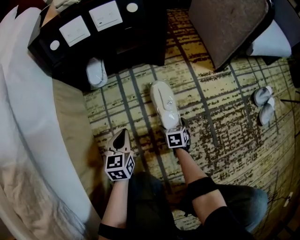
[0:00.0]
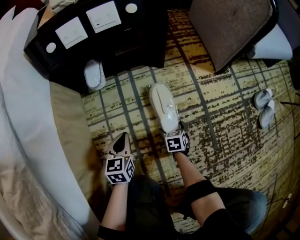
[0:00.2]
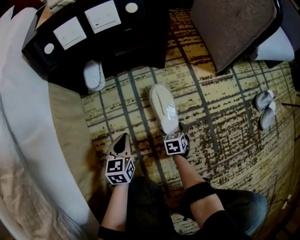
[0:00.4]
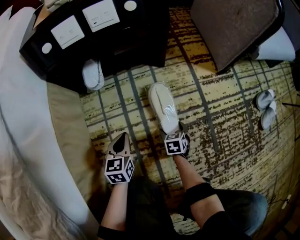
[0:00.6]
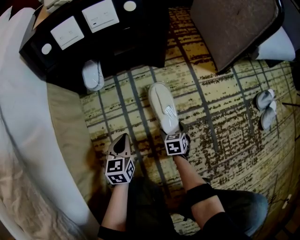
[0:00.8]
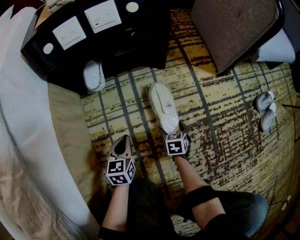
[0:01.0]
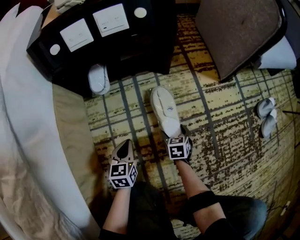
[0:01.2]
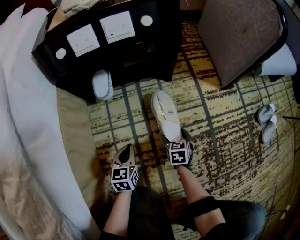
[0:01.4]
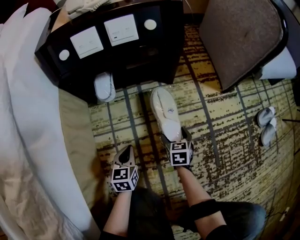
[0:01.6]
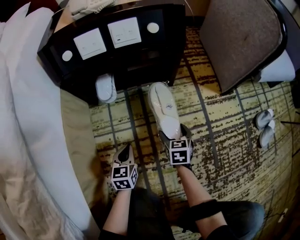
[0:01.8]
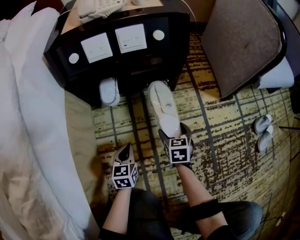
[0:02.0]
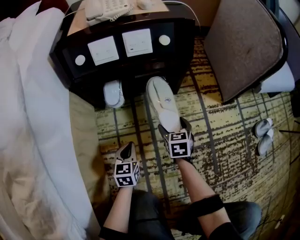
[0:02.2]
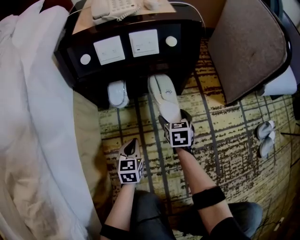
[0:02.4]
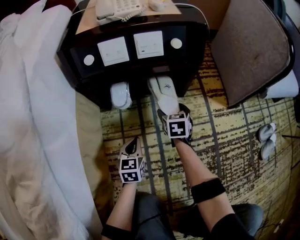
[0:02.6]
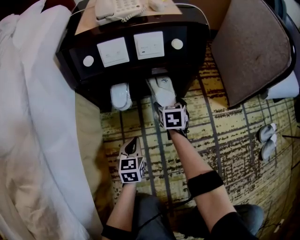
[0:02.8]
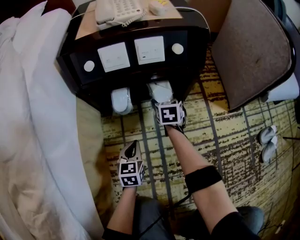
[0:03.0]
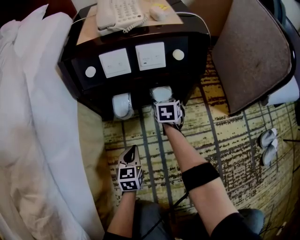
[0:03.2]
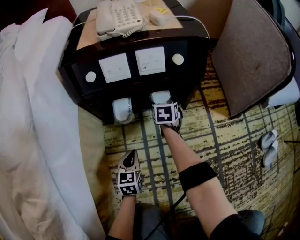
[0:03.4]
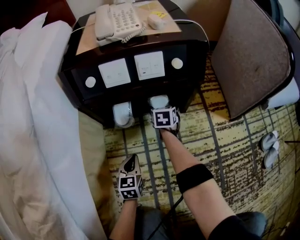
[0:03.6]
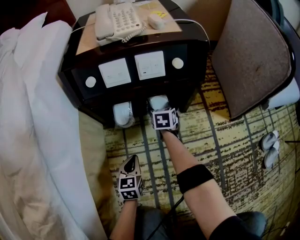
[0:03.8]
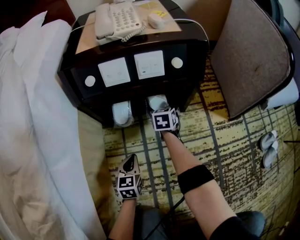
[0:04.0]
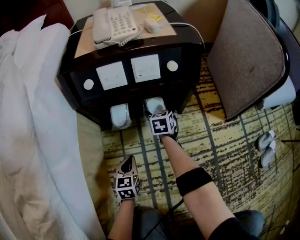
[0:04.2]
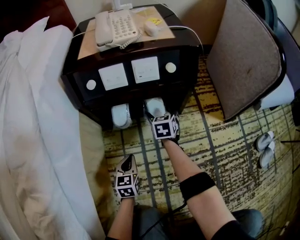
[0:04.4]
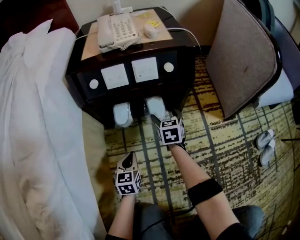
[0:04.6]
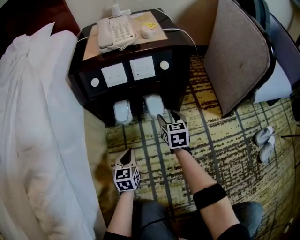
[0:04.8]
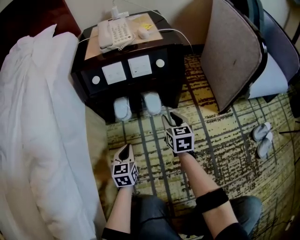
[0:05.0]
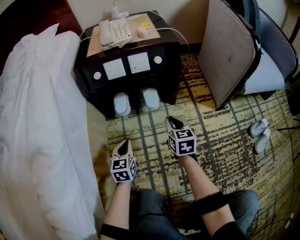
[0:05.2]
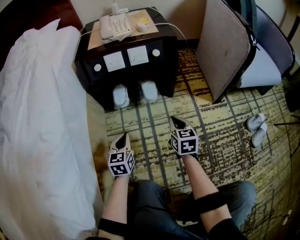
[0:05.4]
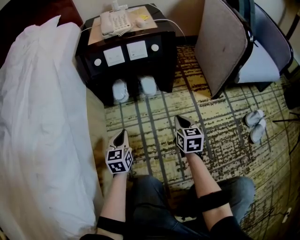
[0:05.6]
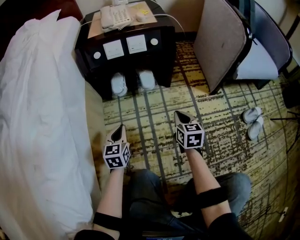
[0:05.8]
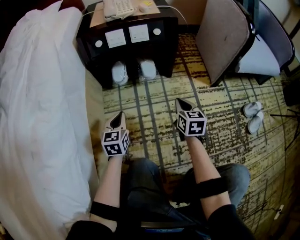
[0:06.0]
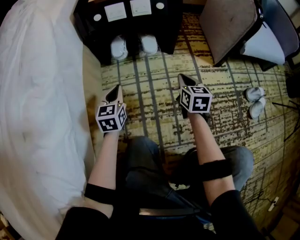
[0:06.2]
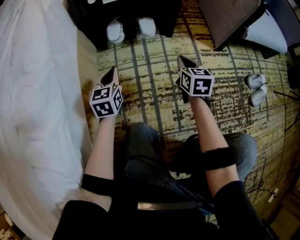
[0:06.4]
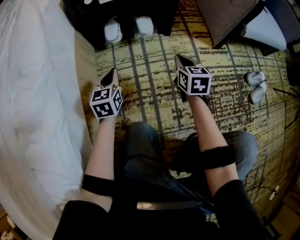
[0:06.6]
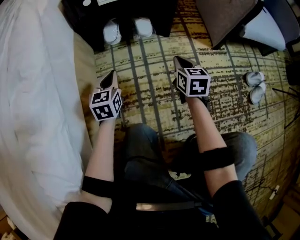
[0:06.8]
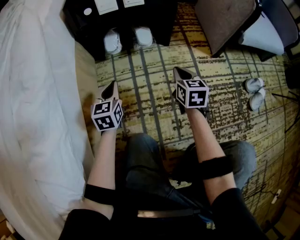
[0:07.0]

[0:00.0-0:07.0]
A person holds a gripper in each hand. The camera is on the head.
0:00.0 to 0:01.4: The right gripper moves roughly 5 cm.
0:01.4 to 0:02.8: The right gripper travels forward and upward by some 25 cm; the left gripper moves forward, about 10 cm.
0:02.8 to 0:04.2: The right gripper heads forward, covering approximately 5 cm.
0:04.2 to 0:05.6: The left gripper moves upward and backward, approximately 15 cm, while the right gripper shifts roughly 30 cm backward and upward, and closes its fingers.
0:05.6 to 0:07.0: The grippers stay close to where they were, moving slightly.

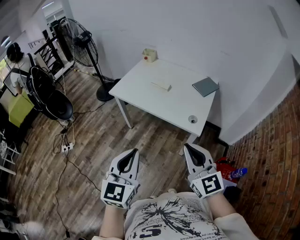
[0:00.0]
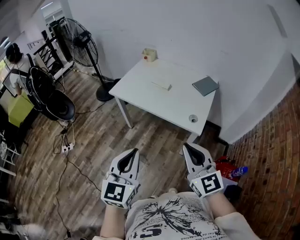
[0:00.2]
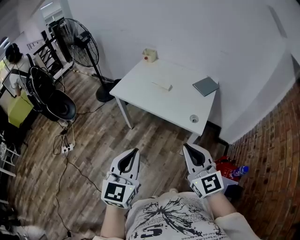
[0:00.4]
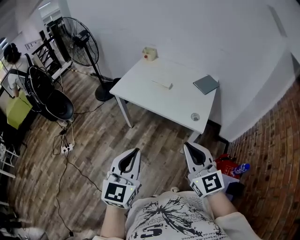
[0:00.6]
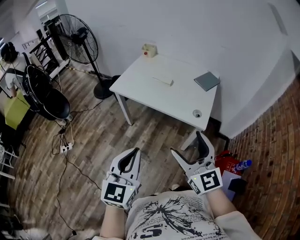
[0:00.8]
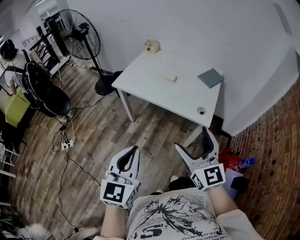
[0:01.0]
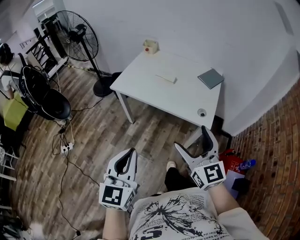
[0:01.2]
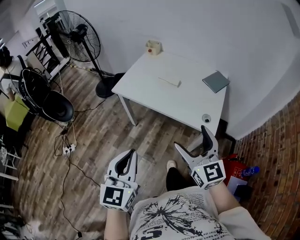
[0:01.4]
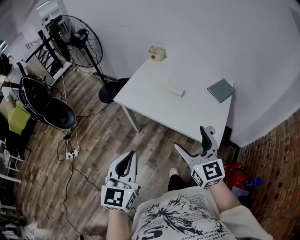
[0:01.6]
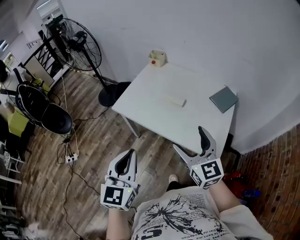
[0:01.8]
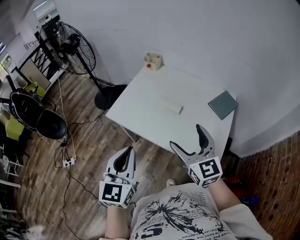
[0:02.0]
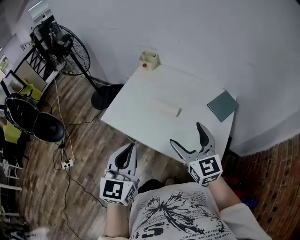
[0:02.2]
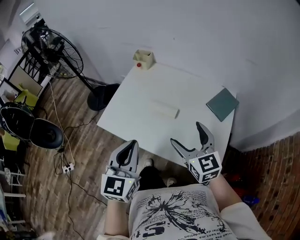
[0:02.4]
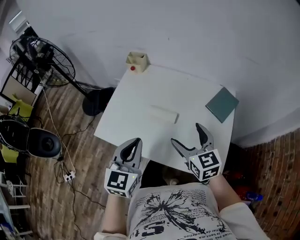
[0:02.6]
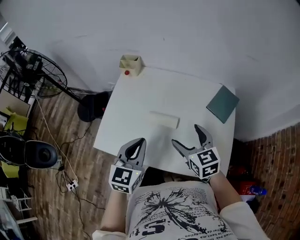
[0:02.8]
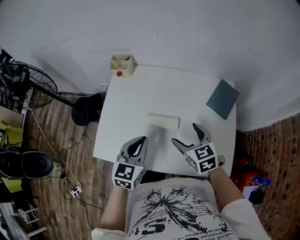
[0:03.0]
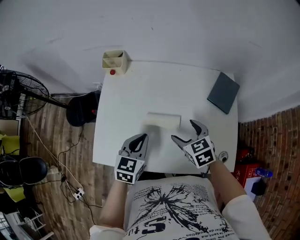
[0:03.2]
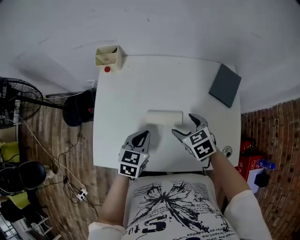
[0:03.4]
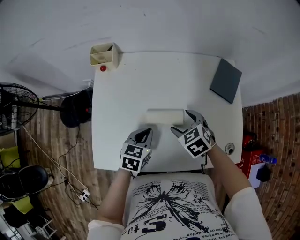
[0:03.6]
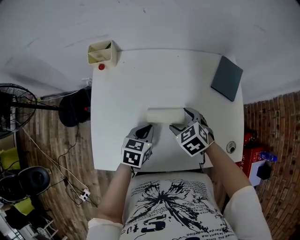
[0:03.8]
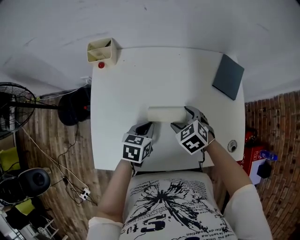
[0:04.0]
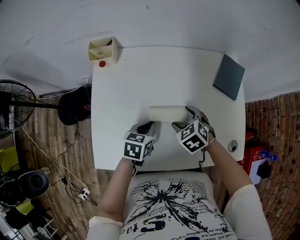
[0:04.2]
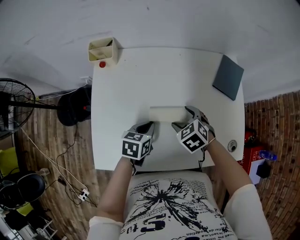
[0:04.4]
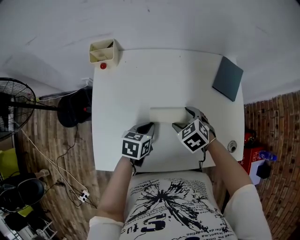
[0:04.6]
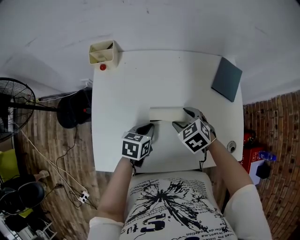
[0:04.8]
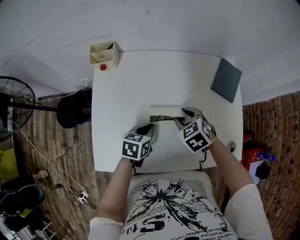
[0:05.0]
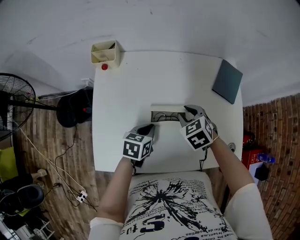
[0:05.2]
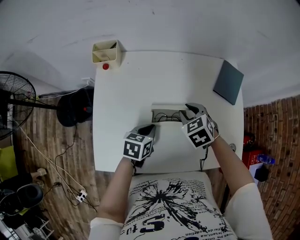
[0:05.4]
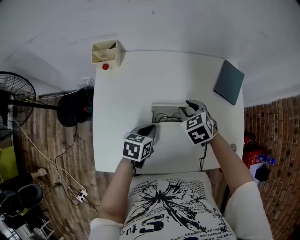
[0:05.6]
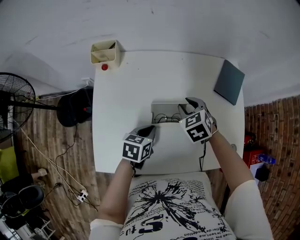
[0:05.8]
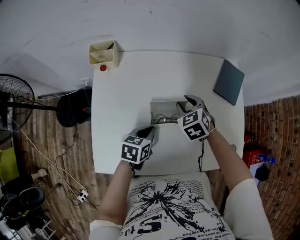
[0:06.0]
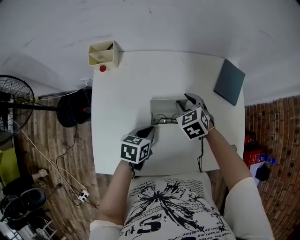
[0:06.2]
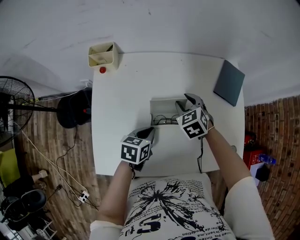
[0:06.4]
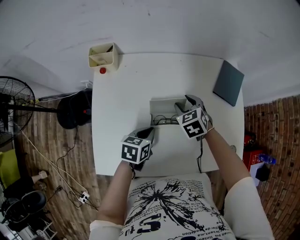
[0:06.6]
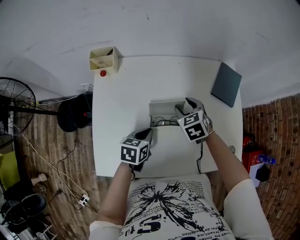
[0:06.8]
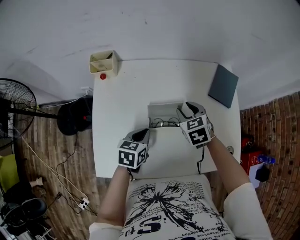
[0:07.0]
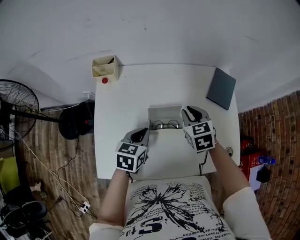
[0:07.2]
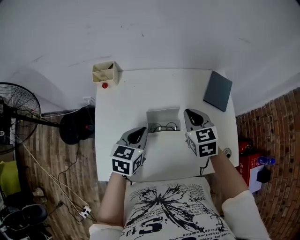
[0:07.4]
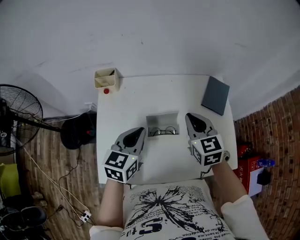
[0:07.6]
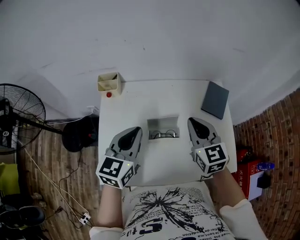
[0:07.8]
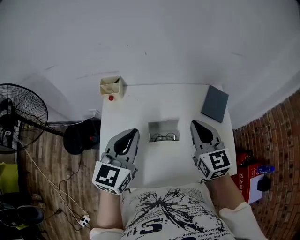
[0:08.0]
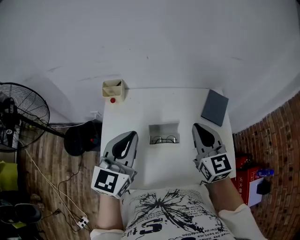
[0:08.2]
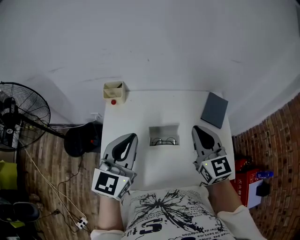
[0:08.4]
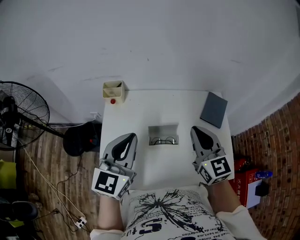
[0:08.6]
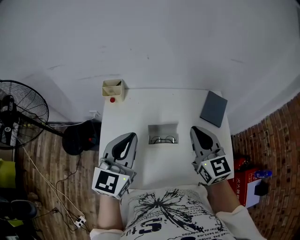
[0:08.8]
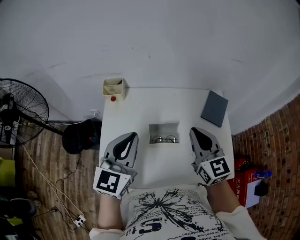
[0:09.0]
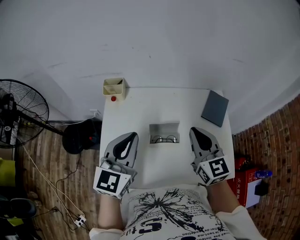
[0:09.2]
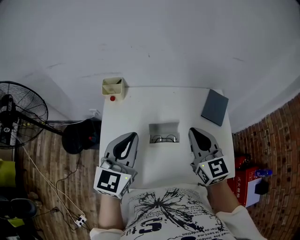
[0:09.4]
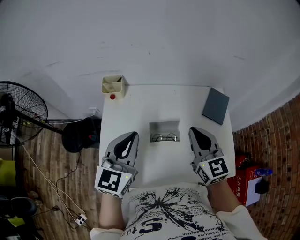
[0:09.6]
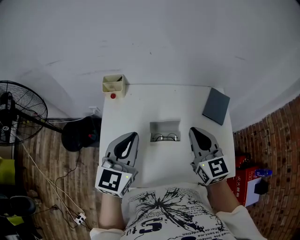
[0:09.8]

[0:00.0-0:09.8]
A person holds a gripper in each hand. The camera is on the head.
0:00.0 to 0:01.4: The right gripper goes some 15 cm forward and to the left, and opens its fingers. Meanwhile the left gripper goes some 10 cm to the left and forward.
0:01.4 to 0:02.8: The pair of grippers is taken forward, roughly 50 cm. The right gripper swivels approximately 30 degrees; the left gripper turns by approximately 20 degrees.
0:02.8 to 0:04.2: Both grippers travel together downward and forward, roughly 25 cm. The left gripper changes its angle by about 40 degrees. The right gripper tips its fingers downward by some 30 degrees.
0:04.2 to 0:05.6: The right gripper shifts approximately 5 cm forward, and closes up.
0:05.6 to 0:07.0: The grippers stay close to where they were, moving slightly.
0:07.0 to 0:08.4: Both grippers travel together upward, about 25 cm. The right gripper points its fingers about 40 degrees further upward, and closes its fingers. Meanwhile the left gripper tips its fingers upward by roughly 40 degrees.
0:08.4 to 0:09.8: The grippers make only small movements.

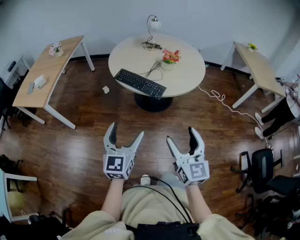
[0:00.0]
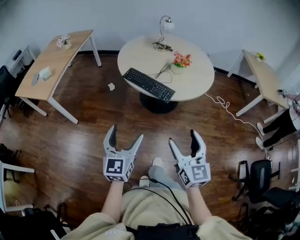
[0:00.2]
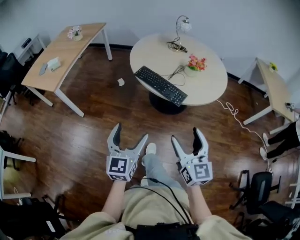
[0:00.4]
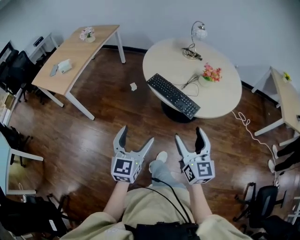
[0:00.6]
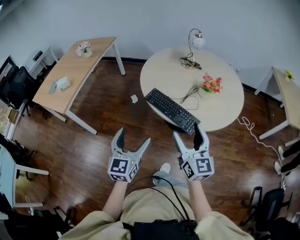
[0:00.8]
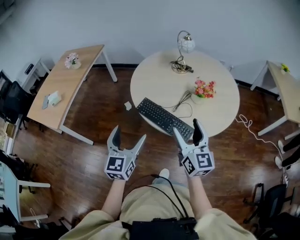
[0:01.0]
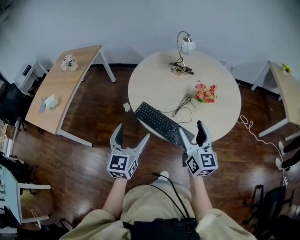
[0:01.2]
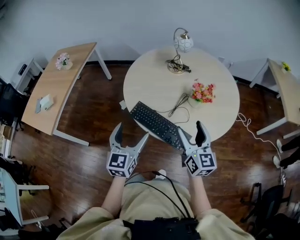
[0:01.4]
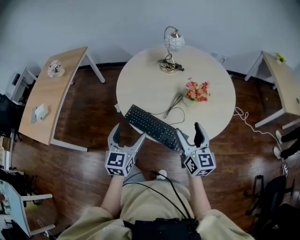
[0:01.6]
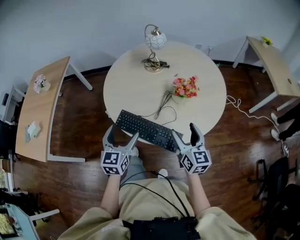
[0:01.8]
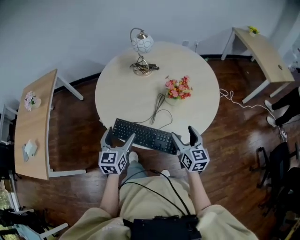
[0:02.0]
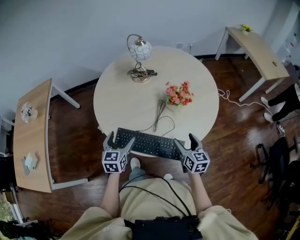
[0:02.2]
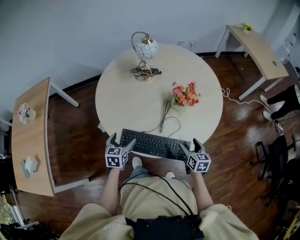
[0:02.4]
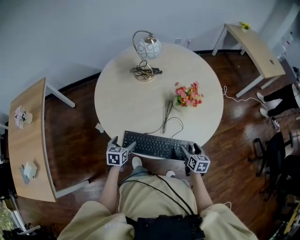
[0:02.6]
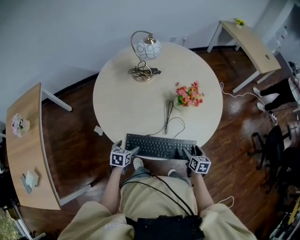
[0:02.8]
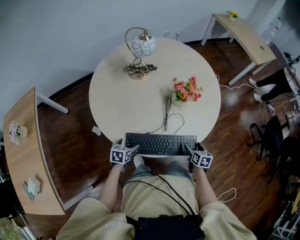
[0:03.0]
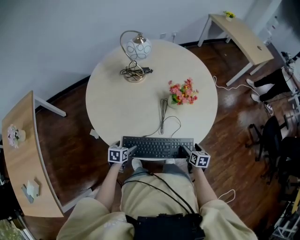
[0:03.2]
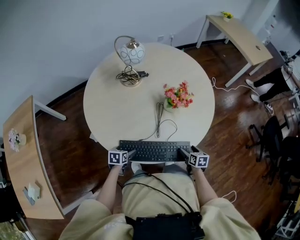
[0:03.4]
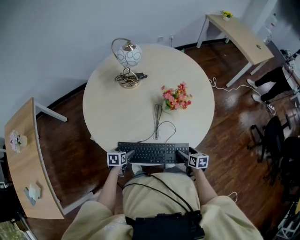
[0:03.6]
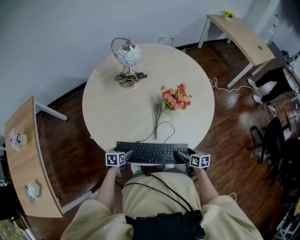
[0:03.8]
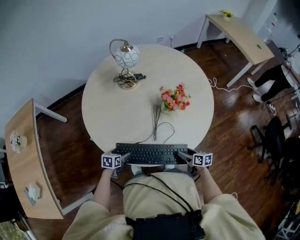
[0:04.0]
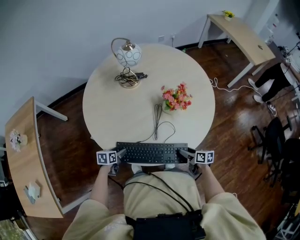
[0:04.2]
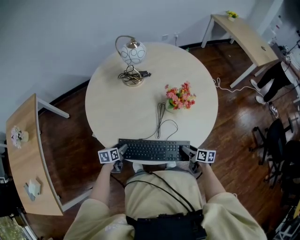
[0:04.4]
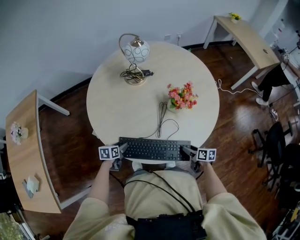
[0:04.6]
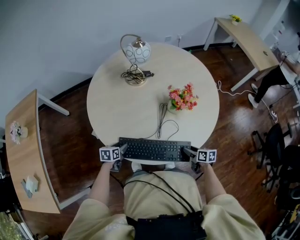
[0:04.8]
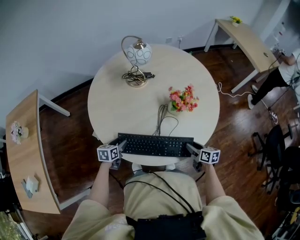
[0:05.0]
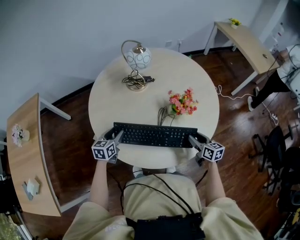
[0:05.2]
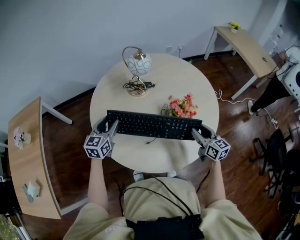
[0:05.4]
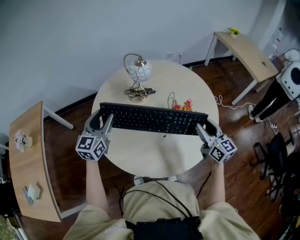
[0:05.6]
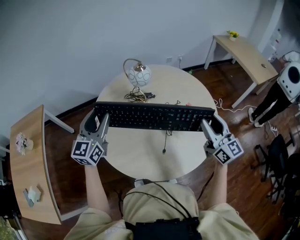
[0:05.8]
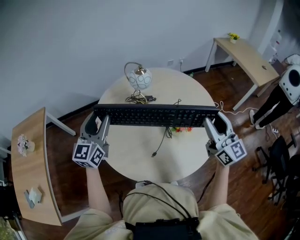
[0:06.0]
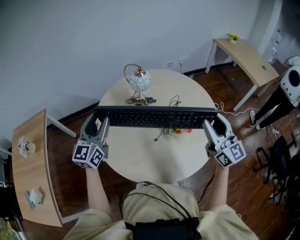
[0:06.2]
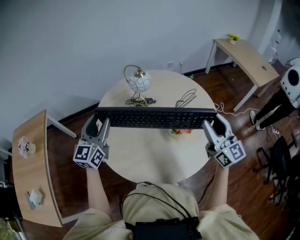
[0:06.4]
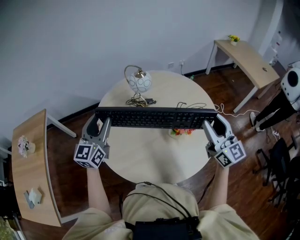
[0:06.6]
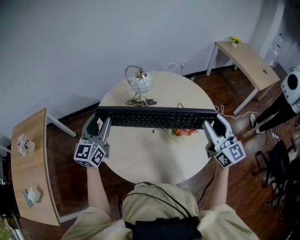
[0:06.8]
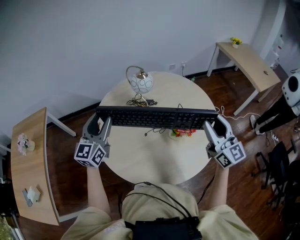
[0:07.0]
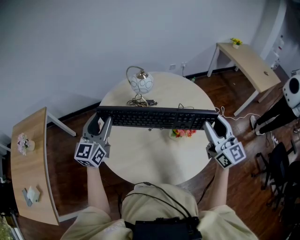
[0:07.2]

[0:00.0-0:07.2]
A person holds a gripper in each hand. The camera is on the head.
0:00.0 to 0:01.4: The grippers both shift forward by about 40 cm.
0:01.4 to 0:02.8: Both grippers move downward, roughly 30 cm. The left gripper angles its fingers downward, by about 40 degrees. The right gripper points its fingers about 40 degrees further downward.
0:02.8 to 0:04.4: The left gripper changes place by some 5 cm, swivels about 20 degrees, and closes up. Meanwhile the right gripper changes place by roughly 5 cm, and swivels some 30 degrees.
0:04.4 to 0:05.8: Both grippers travel together upward, about 40 cm. The right gripper tilts its fingers about 40 degrees upward, while the left gripper points its fingers some 50 degrees further upward.
0:05.8 to 0:07.2: The grippers stay close to where they were, moving slightly.
